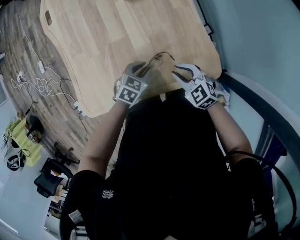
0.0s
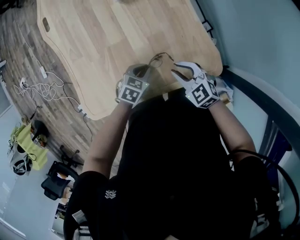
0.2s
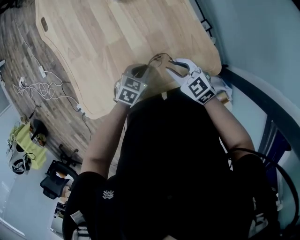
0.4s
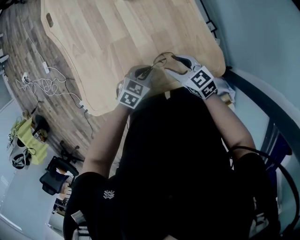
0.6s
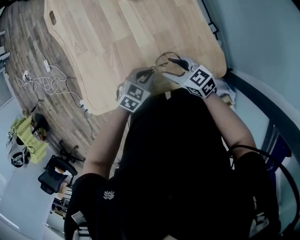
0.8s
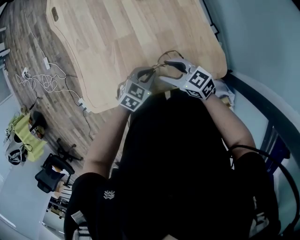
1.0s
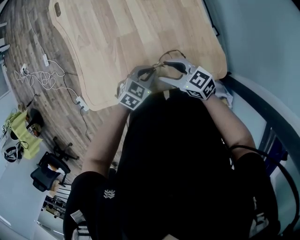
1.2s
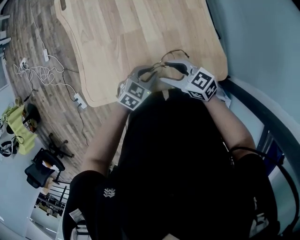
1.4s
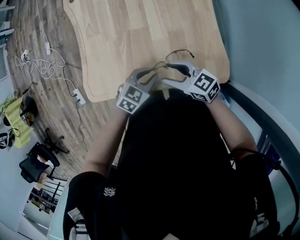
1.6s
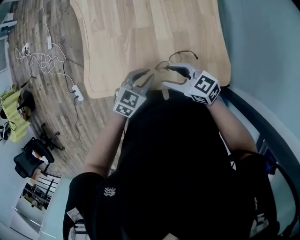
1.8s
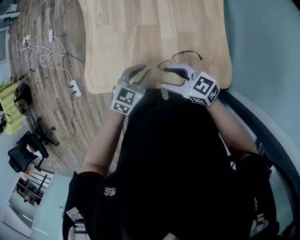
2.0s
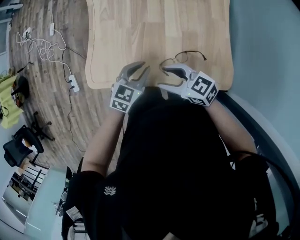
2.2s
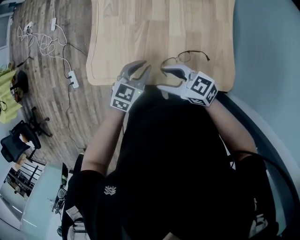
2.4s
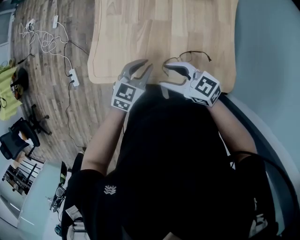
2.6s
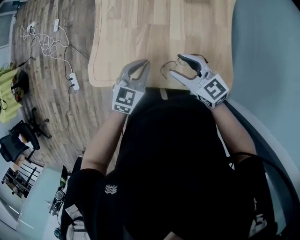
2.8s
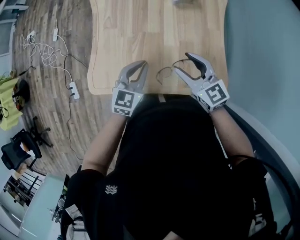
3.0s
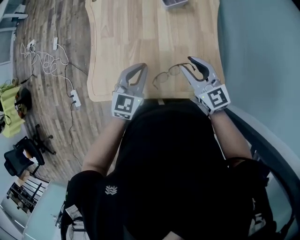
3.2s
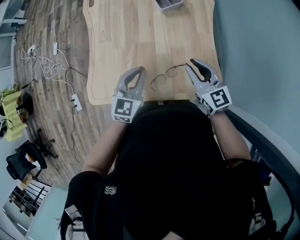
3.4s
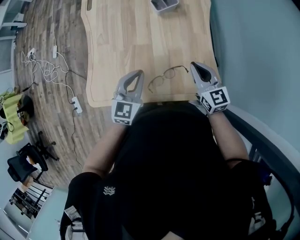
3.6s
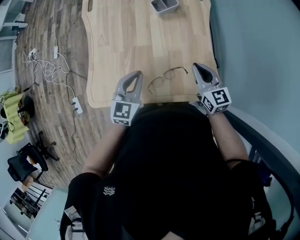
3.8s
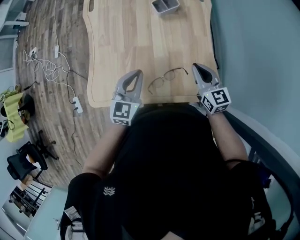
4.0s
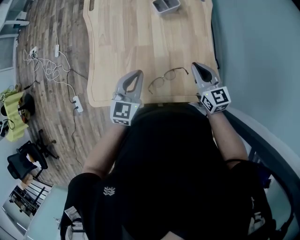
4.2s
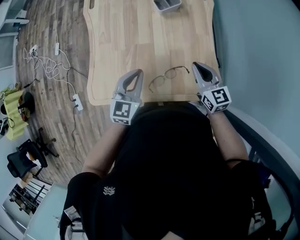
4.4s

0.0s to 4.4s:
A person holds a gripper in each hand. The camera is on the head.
0.0s to 1.4s: The right gripper moves approximately 10 cm, changes its angle by some 30 degrees, and opens its fingers. Meanwhile the left gripper ends up some 5 cm from where it was.
1.4s to 3.0s: The left gripper ends up approximately 15 cm from where it was, and changes its angle by some 40 degrees; the right gripper shifts approximately 10 cm upward, and turns by approximately 30 degrees.
3.0s to 4.4s: The right gripper shifts approximately 10 cm to the right, and closes up.

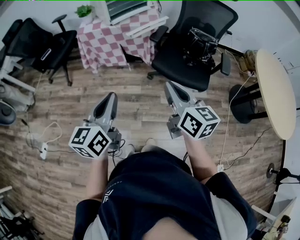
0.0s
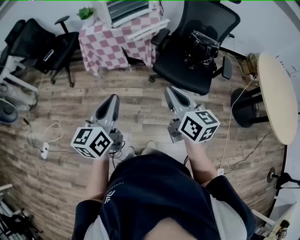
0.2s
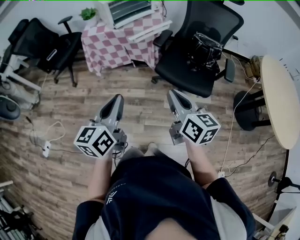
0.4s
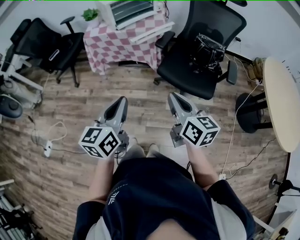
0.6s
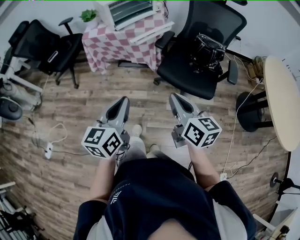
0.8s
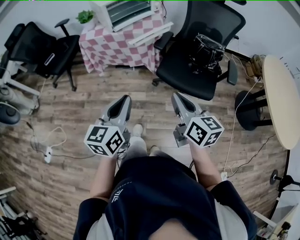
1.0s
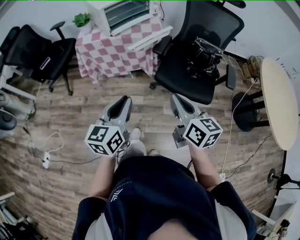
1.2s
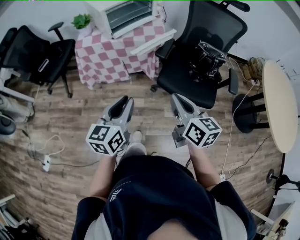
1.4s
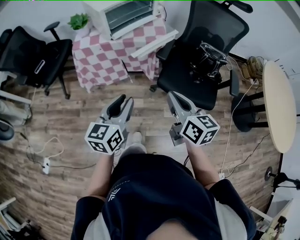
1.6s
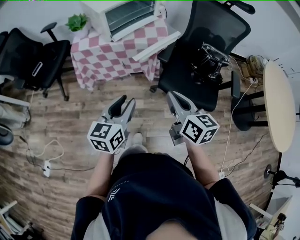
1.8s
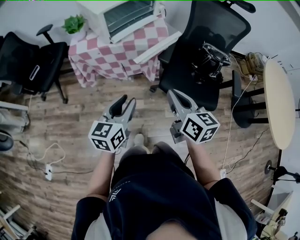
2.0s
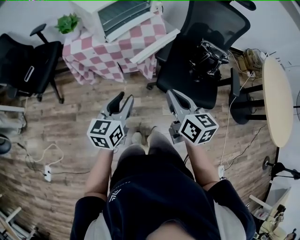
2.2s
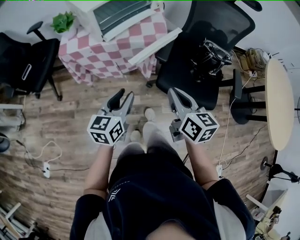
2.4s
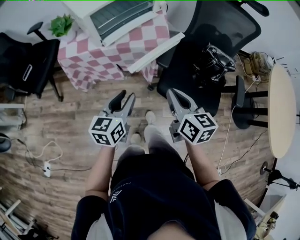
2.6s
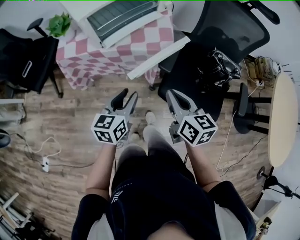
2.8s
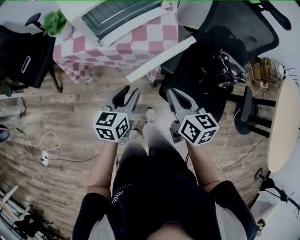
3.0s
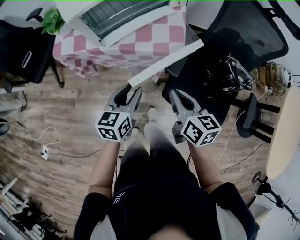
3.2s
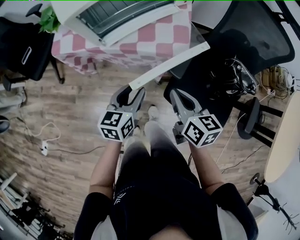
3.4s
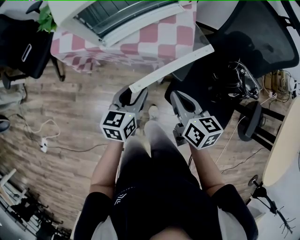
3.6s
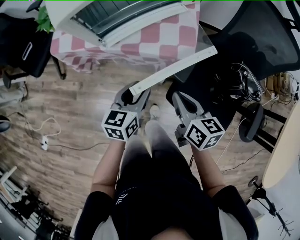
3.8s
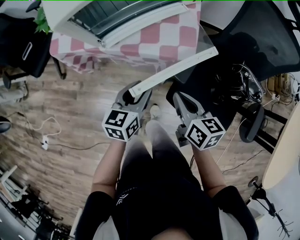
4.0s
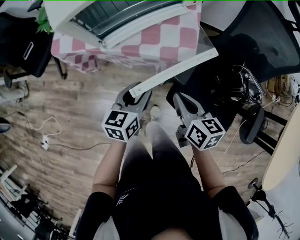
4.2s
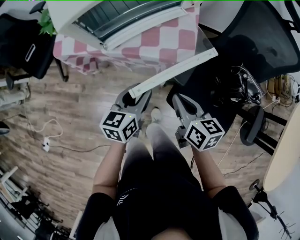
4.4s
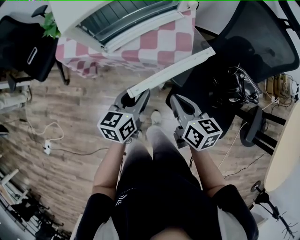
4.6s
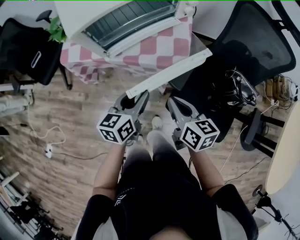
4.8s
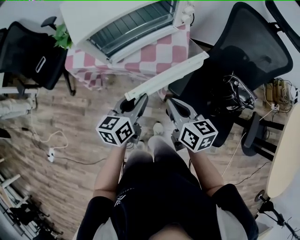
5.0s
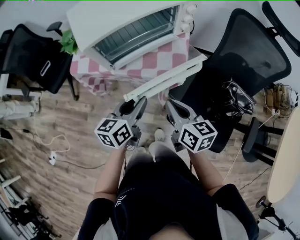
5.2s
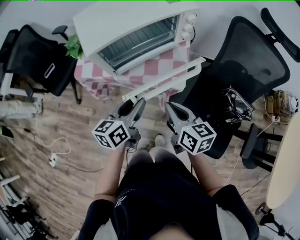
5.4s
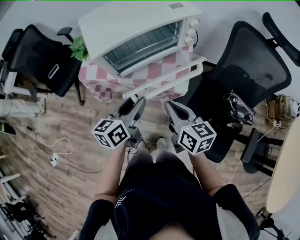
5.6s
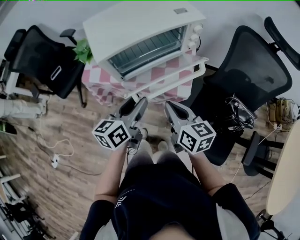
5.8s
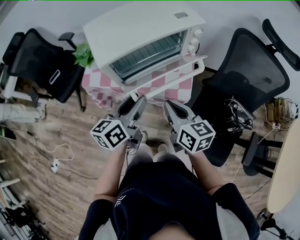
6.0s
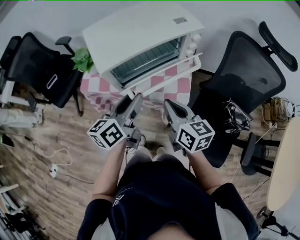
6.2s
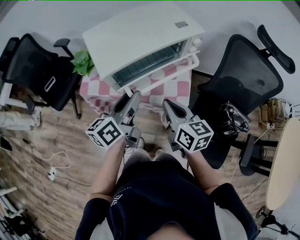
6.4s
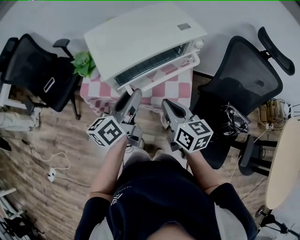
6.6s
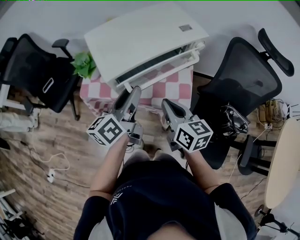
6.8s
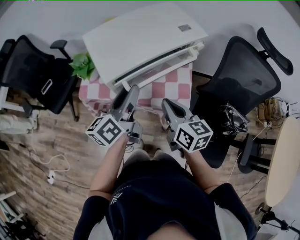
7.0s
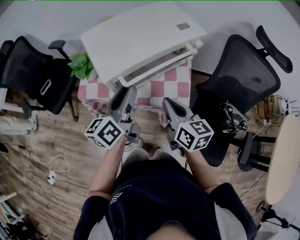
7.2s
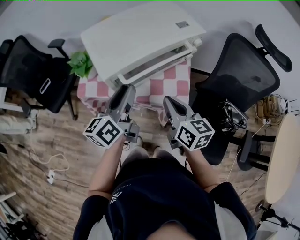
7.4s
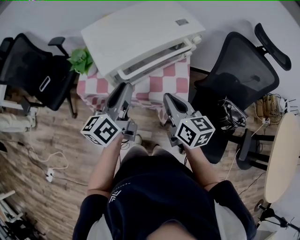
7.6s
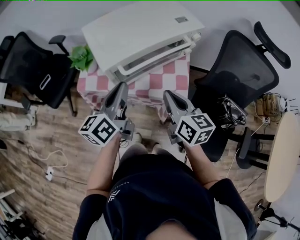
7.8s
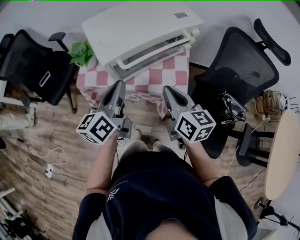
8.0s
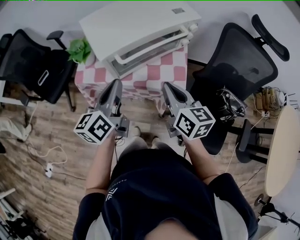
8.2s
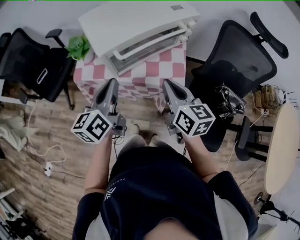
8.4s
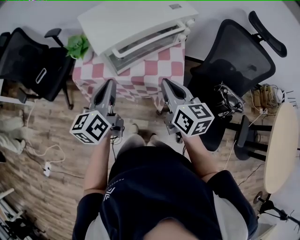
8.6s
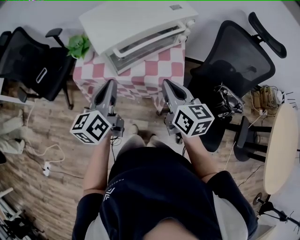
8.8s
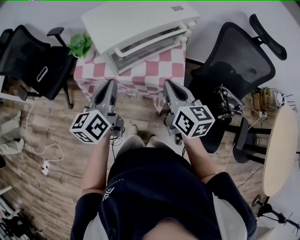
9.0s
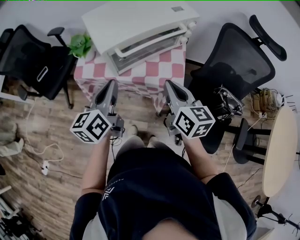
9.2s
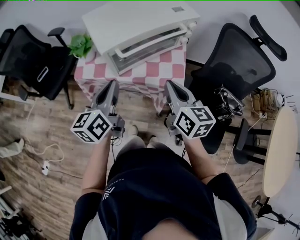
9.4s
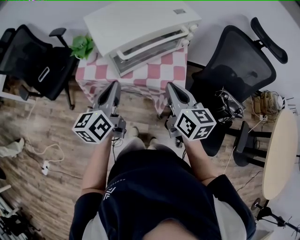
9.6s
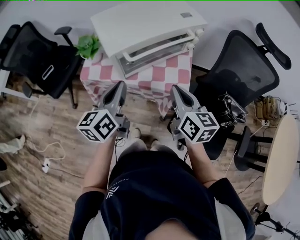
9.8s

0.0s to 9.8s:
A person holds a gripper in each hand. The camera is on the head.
0.0s to 1.4s: The grippers both shift forward by some 15 cm.
1.4s to 2.8s: The right gripper travels forward by approximately 20 cm. The left gripper is displaced forward and downward by about 25 cm.
2.8s to 4.2s: The left gripper travels forward and downward by about 10 cm. Meanwhile the right gripper travels downward and forward by some 10 cm.
4.2s to 5.6s: Both grippers travel together upward, approximately 10 cm.
5.6s to 7.0s: The left gripper travels forward, upward and to the left by about 15 cm. Meanwhile the right gripper is displaced forward by approximately 10 cm.
7.0s to 8.4s: The left gripper shifts some 5 cm backward, and closes its fingers.
8.4s to 9.8s: The grippers move only a little.

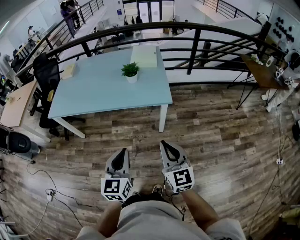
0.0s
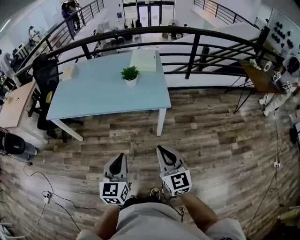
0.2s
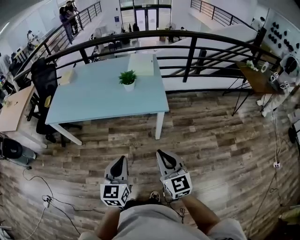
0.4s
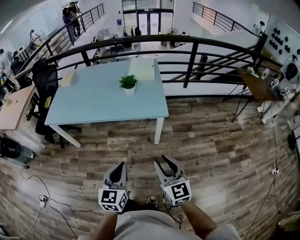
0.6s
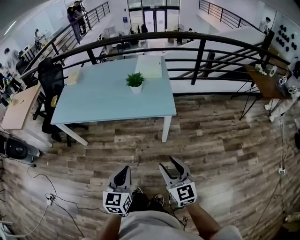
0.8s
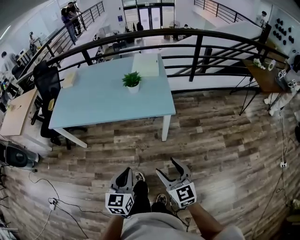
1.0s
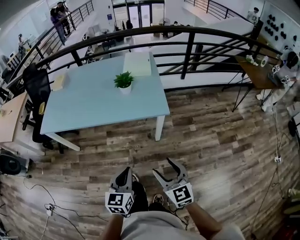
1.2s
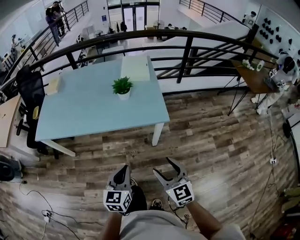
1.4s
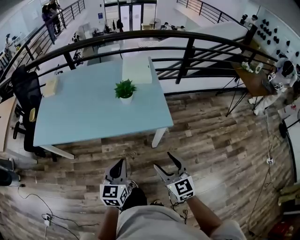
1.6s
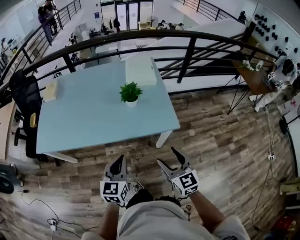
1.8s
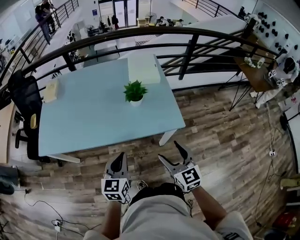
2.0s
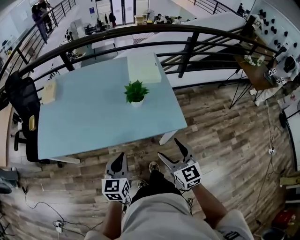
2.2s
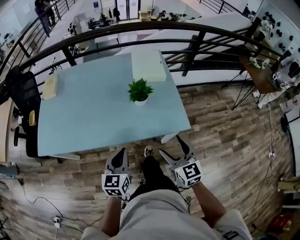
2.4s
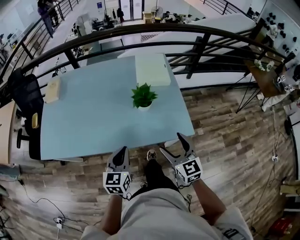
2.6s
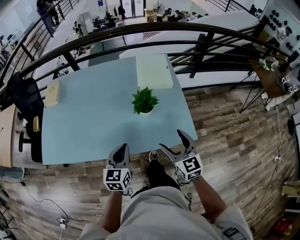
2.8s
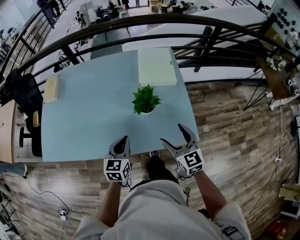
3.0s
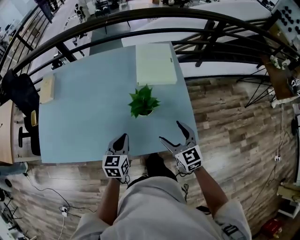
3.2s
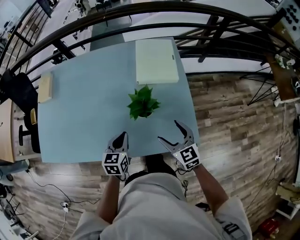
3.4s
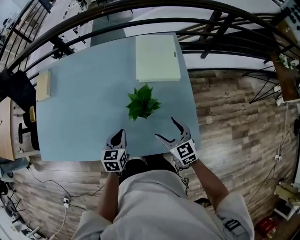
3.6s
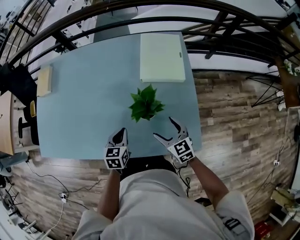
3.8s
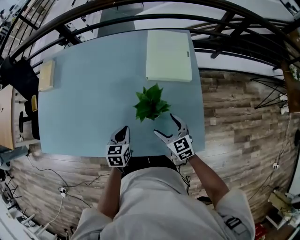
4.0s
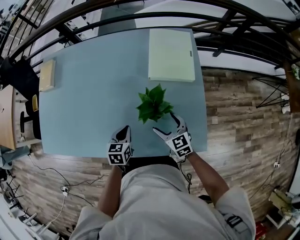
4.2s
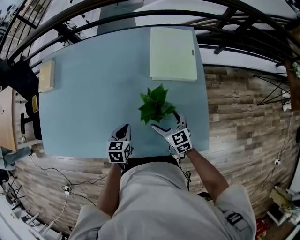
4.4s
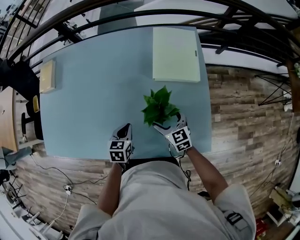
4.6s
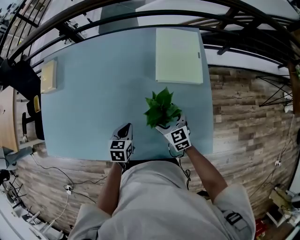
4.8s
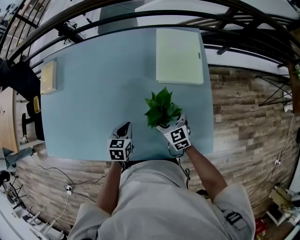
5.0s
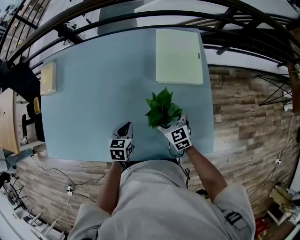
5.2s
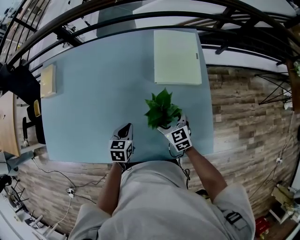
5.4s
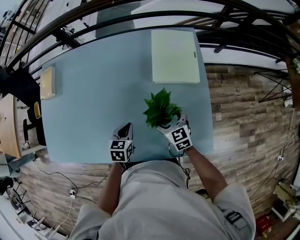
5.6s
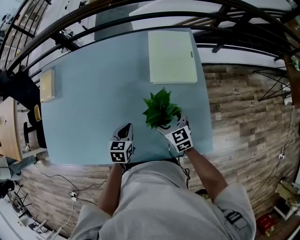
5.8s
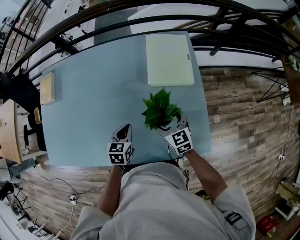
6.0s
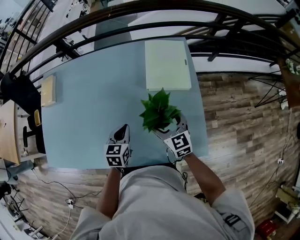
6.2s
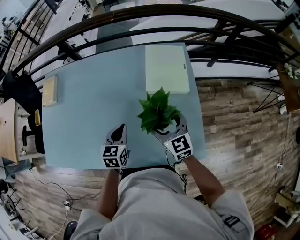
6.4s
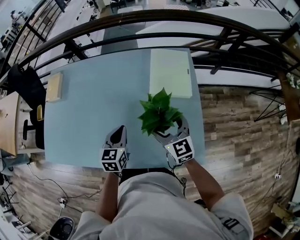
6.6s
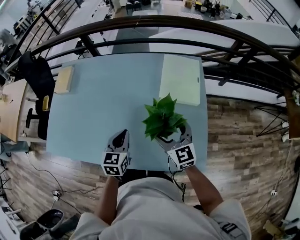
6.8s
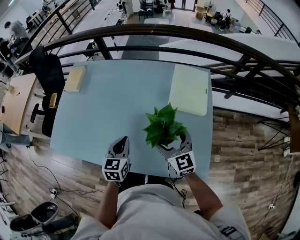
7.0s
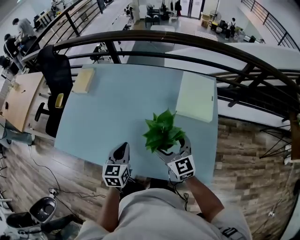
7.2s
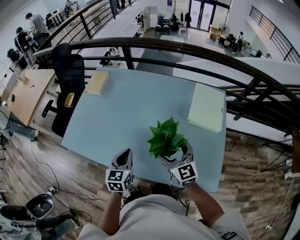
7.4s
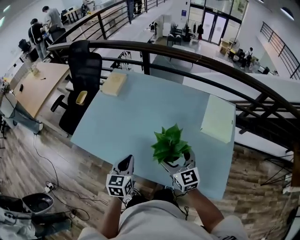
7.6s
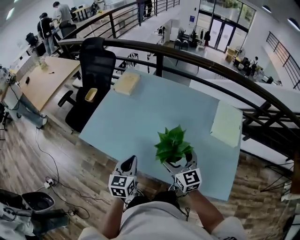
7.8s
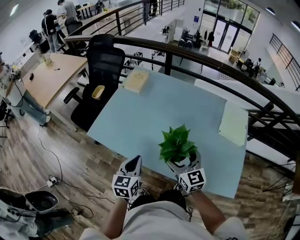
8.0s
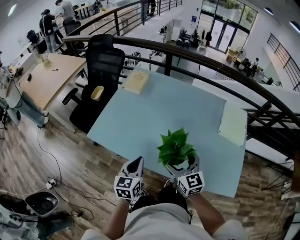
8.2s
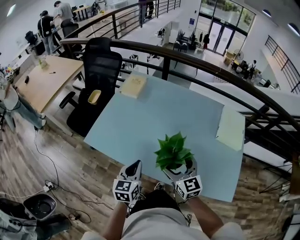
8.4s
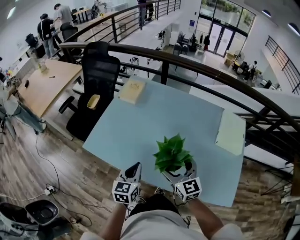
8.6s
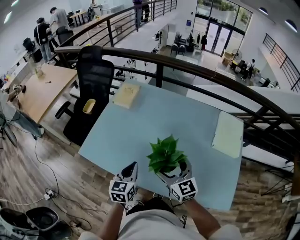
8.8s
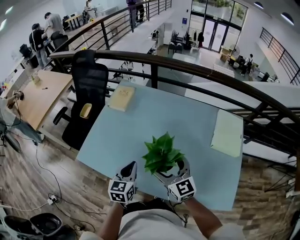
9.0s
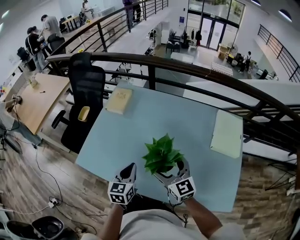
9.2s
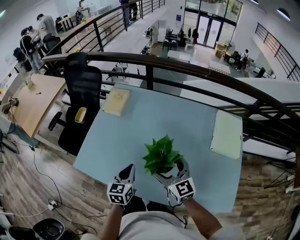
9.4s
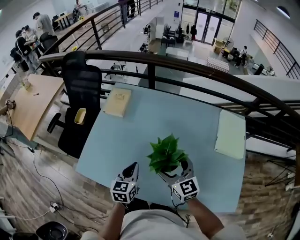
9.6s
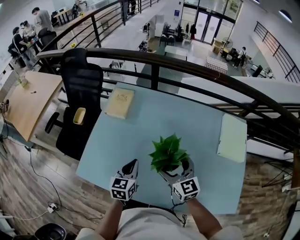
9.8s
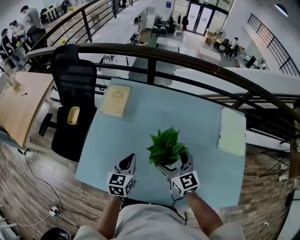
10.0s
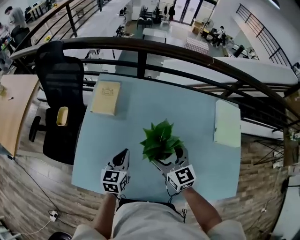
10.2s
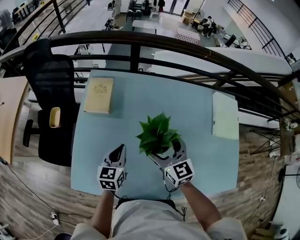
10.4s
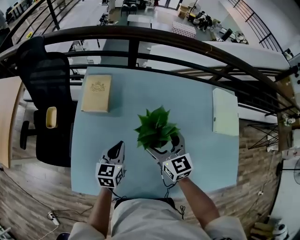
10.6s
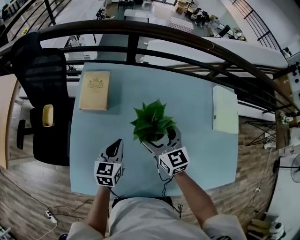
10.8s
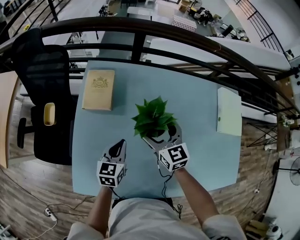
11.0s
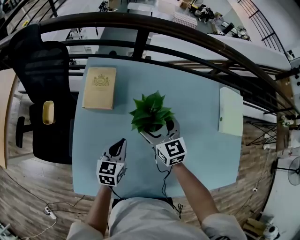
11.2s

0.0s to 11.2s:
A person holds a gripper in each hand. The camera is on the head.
0.0s to 1.6s: The right gripper goes roughly 15 cm forward, downward and to the left, and opens up, while the left gripper goes roughly 15 cm forward.
1.6s to 3.2s: Both grippers move forward, some 35 cm.
3.2s to 4.8s: The right gripper goes approximately 20 cm forward, downward and to the left; the left gripper moves downward and forward, about 15 cm.
4.8s to 6.4s: Both grippers move upward, roughly 10 cm.
6.4s to 8.0s: The two grippers go about 35 cm to the left. The right gripper swivels about 20 degrees. Meanwhile the left gripper swivels about 30 degrees.
8.0s to 9.6s: Both grippers travel together forward, some 15 cm.
9.6s to 11.2s: The left gripper travels forward, to the left and downward by approximately 20 cm; the right gripper shifts approximately 25 cm forward and to the left.
